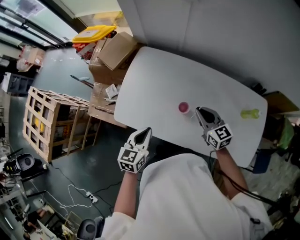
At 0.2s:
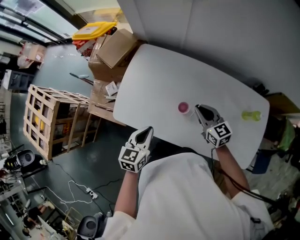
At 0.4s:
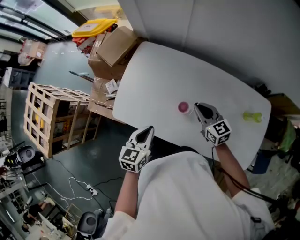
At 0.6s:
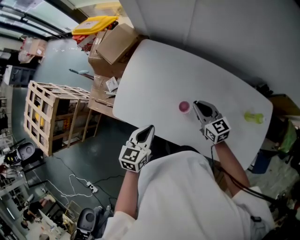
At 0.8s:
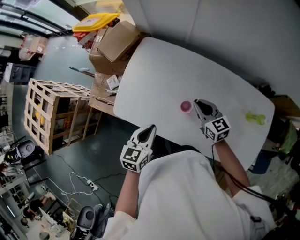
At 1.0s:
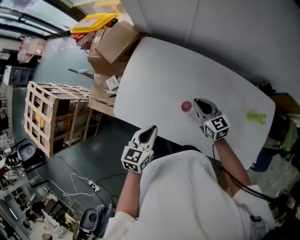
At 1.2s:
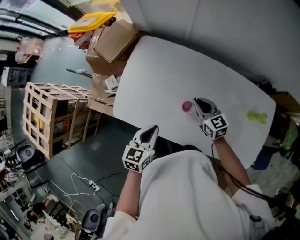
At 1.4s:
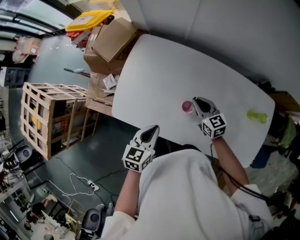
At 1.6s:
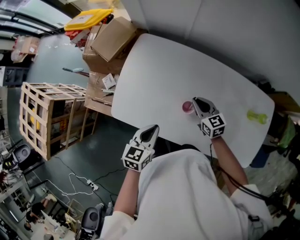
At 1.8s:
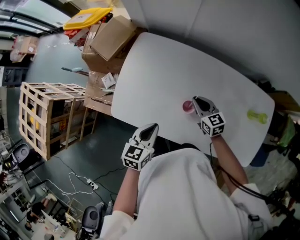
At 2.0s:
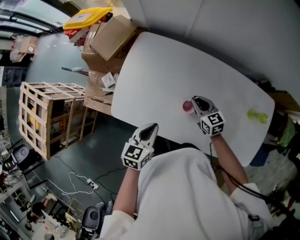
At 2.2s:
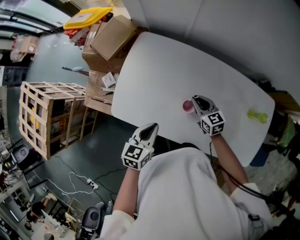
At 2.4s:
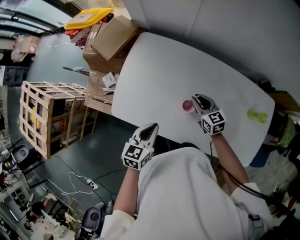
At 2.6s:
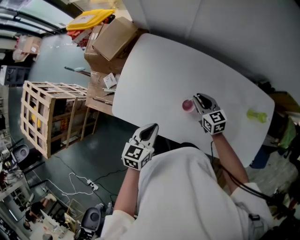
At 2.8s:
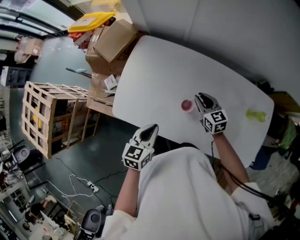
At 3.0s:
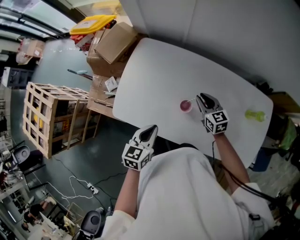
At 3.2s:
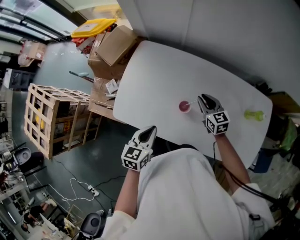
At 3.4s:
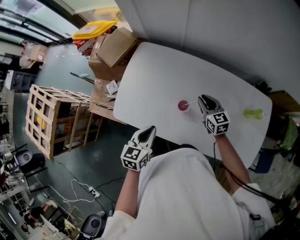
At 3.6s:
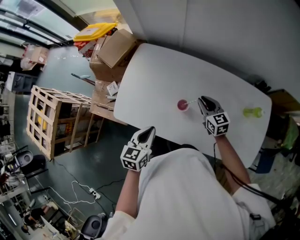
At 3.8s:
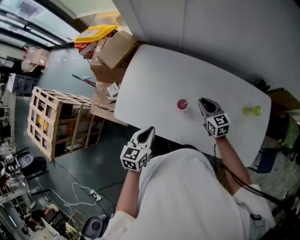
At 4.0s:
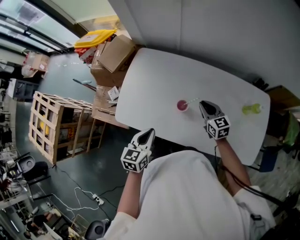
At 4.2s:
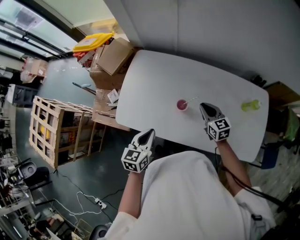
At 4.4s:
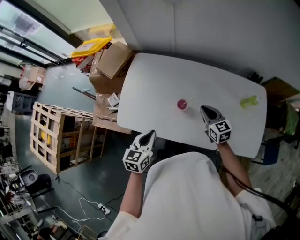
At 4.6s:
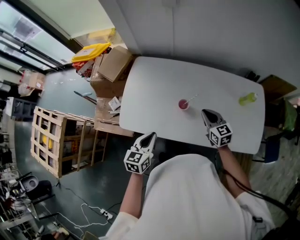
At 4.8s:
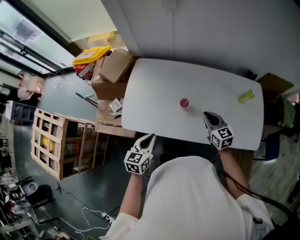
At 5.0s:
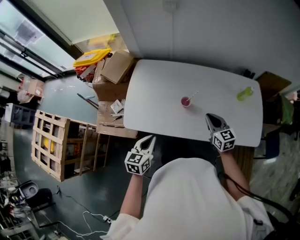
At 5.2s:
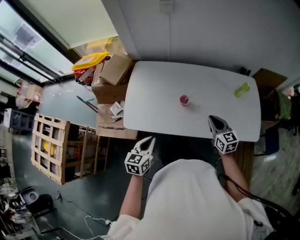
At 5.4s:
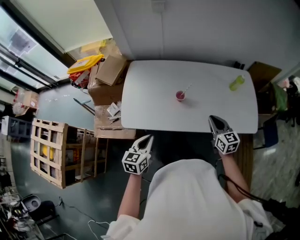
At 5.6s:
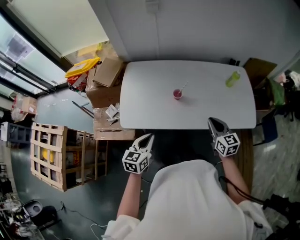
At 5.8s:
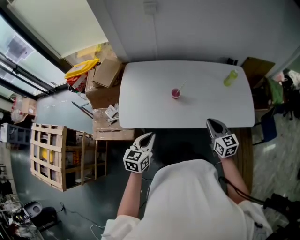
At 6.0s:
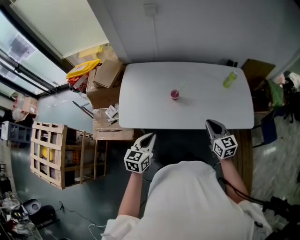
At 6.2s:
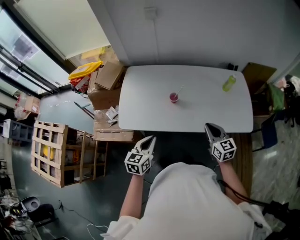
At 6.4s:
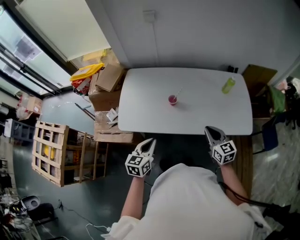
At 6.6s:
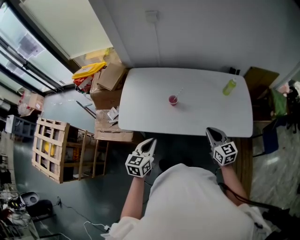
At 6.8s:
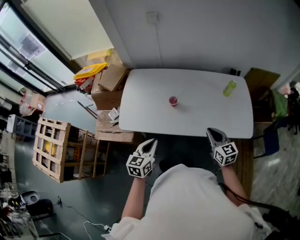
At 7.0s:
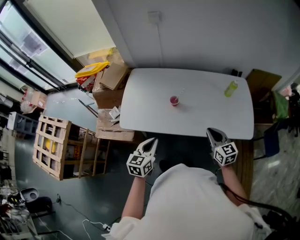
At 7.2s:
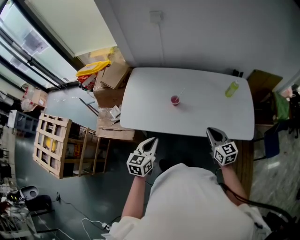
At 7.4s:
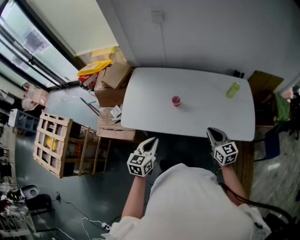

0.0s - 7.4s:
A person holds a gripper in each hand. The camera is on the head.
0.0s - 1.4s: The right gripper goes about 10 cm downward and forward; the left gripper shifts by roughly 5 cm.
1.4s - 3.0s: The grippers make only small movements.
3.0s - 4.4s: The left gripper moves about 5 cm, while the right gripper moves backward, some 10 cm.
4.4s - 6.0s: The left gripper moves backward, roughly 10 cm. The right gripper heads backward, covering some 25 cm.
6.0s - 7.4s: There are only small adjustments of the grippers.

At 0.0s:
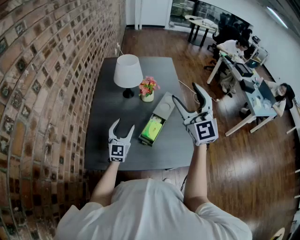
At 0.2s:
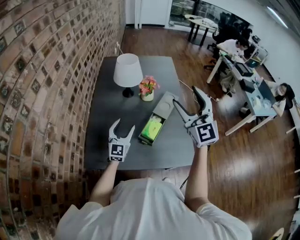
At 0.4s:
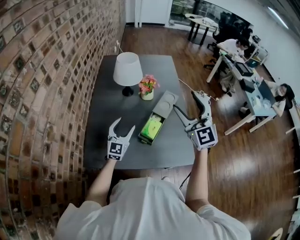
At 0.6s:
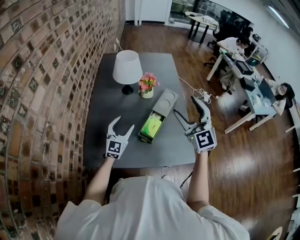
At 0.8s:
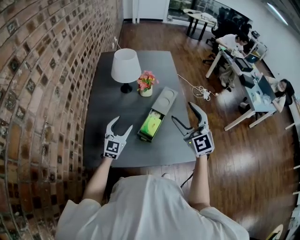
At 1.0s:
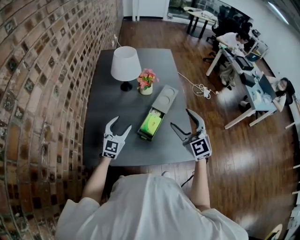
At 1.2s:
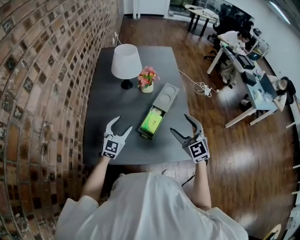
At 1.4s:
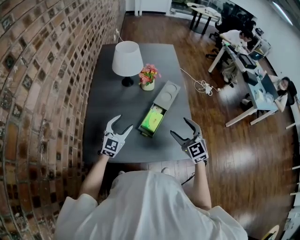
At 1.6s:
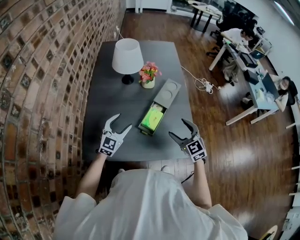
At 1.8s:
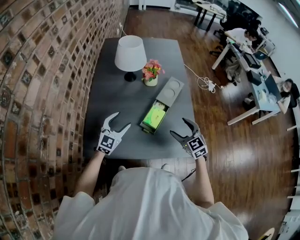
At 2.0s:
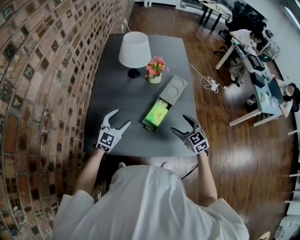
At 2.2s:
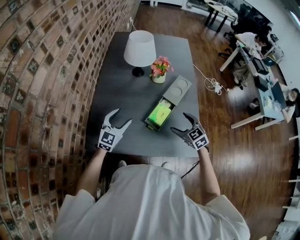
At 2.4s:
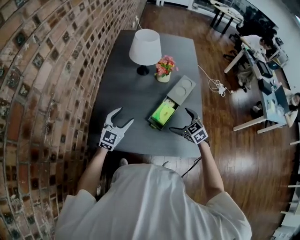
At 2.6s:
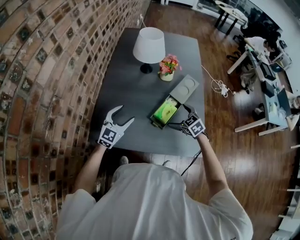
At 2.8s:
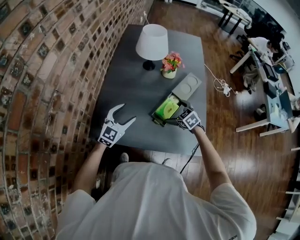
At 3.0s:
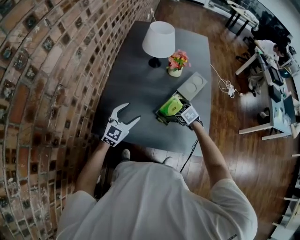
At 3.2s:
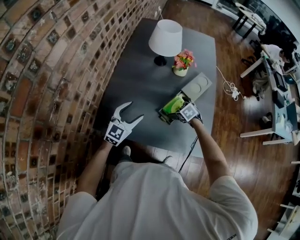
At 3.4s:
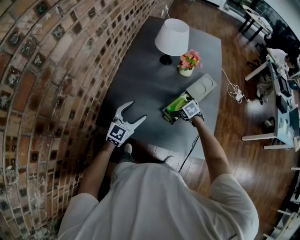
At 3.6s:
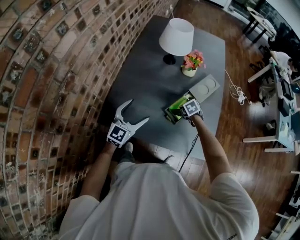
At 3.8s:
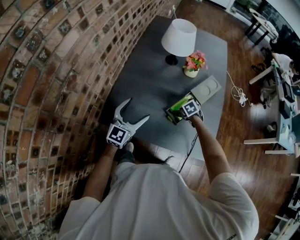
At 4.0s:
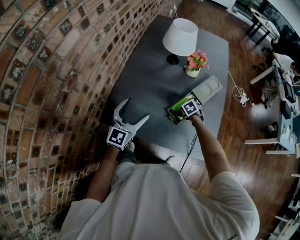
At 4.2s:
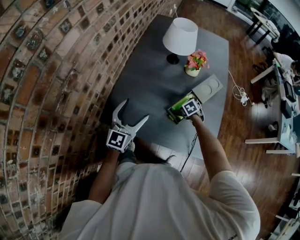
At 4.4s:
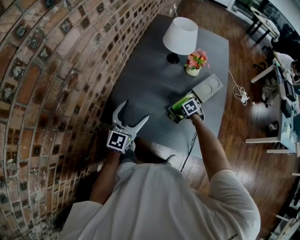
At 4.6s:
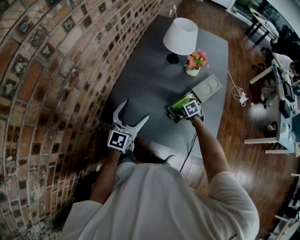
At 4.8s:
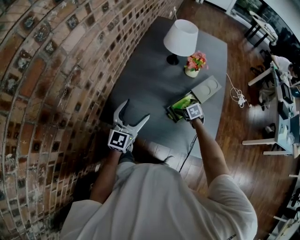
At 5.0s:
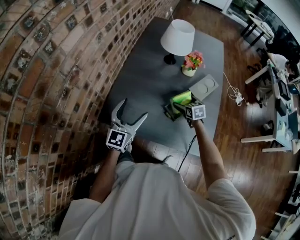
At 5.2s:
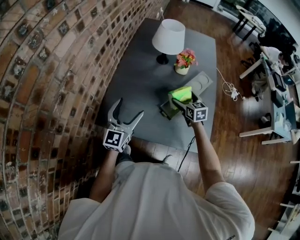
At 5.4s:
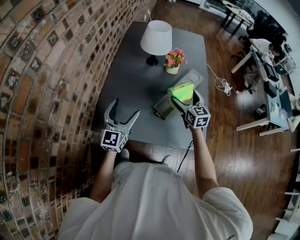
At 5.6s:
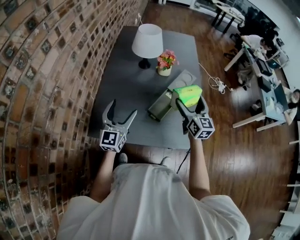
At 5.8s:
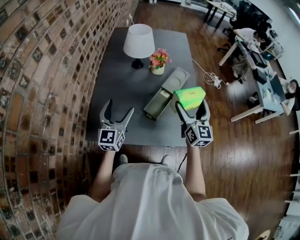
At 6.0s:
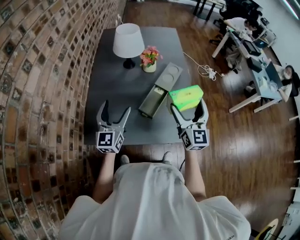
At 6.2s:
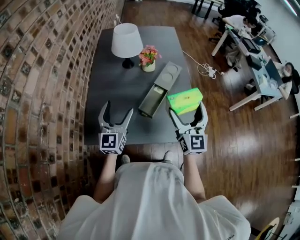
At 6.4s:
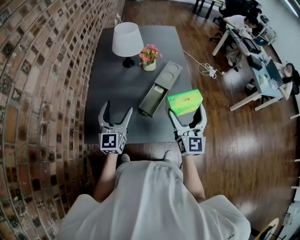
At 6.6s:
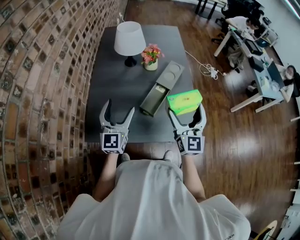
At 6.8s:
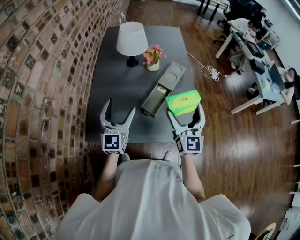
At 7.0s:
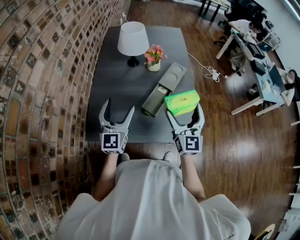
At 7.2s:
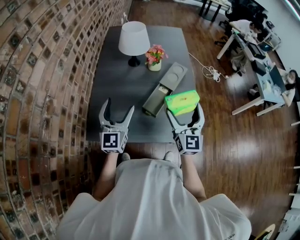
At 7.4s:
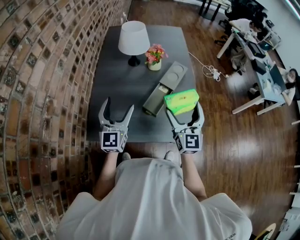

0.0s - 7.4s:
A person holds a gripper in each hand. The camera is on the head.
0.0s - 1.4s: The right gripper travels downward by roughly 25 cm, and turns by approximately 30 degrees. The left gripper moves downward, approximately 5 cm.
1.4s - 3.0s: The left gripper goes approximately 5 cm to the left. Meanwhile the right gripper shifts approximately 25 cm downward and forward, tilts its fingers some 40 degrees downward, and opens its fingers.
3.0s - 4.4s: The right gripper goes approximately 10 cm downward, while the left gripper travels upward by approximately 5 cm, and rotates about 20 degrees.
4.4s - 6.0s: The right gripper goes approximately 40 cm upward and backward, and angles its fingers upward, by about 70 degrees. Meanwhile the left gripper ends up some 5 cm from where it was.
6.0s - 7.4s: There are only small adjustments of the grippers.

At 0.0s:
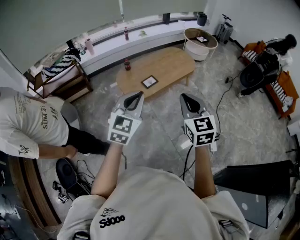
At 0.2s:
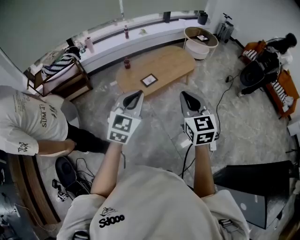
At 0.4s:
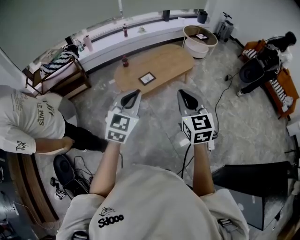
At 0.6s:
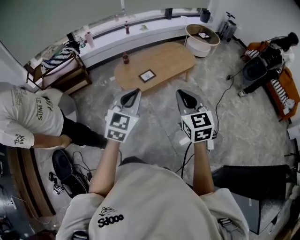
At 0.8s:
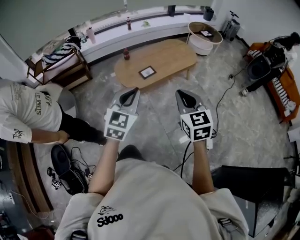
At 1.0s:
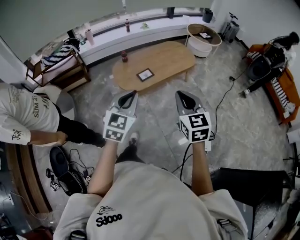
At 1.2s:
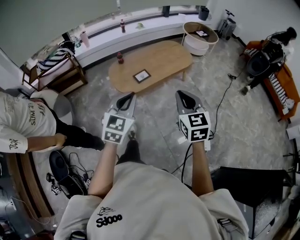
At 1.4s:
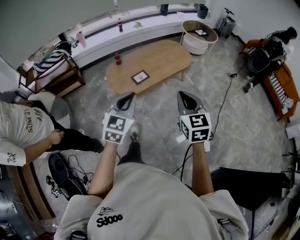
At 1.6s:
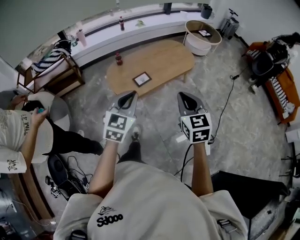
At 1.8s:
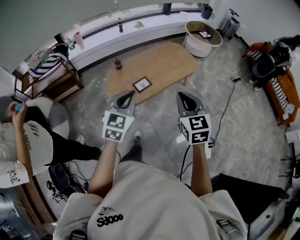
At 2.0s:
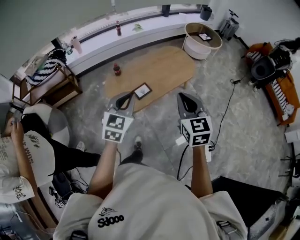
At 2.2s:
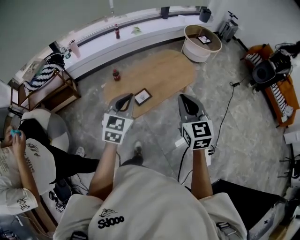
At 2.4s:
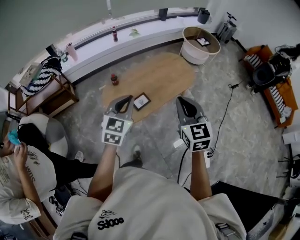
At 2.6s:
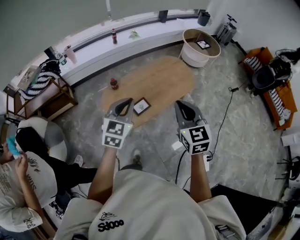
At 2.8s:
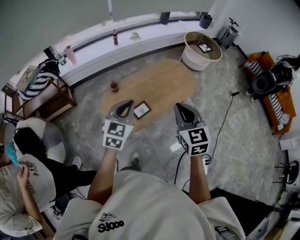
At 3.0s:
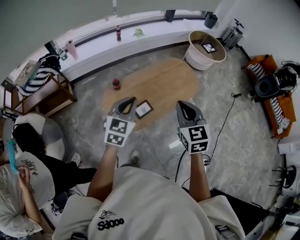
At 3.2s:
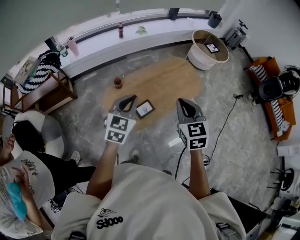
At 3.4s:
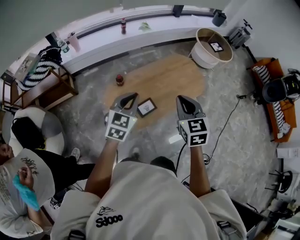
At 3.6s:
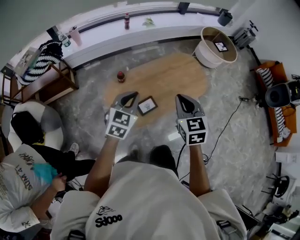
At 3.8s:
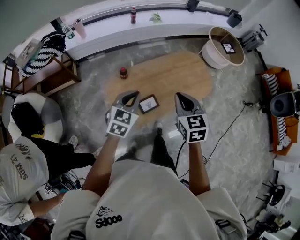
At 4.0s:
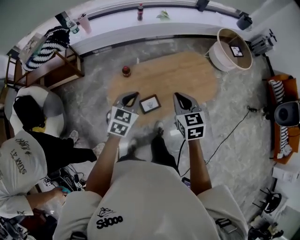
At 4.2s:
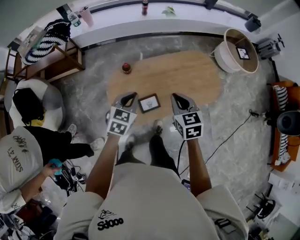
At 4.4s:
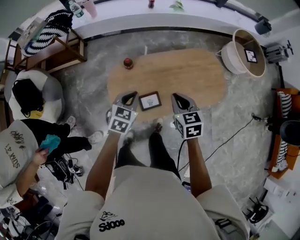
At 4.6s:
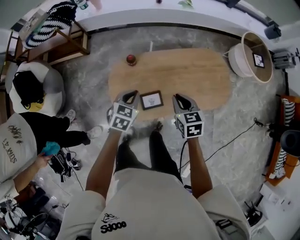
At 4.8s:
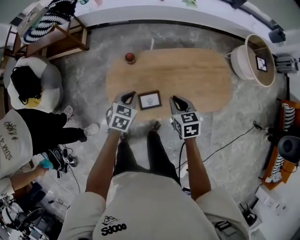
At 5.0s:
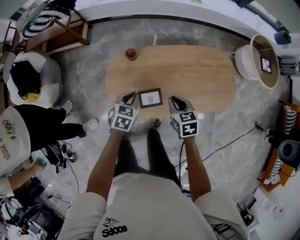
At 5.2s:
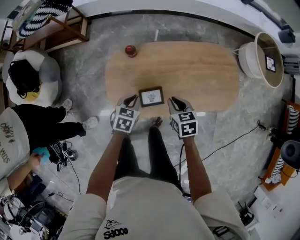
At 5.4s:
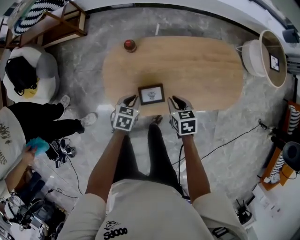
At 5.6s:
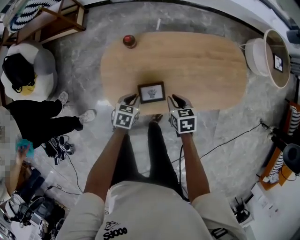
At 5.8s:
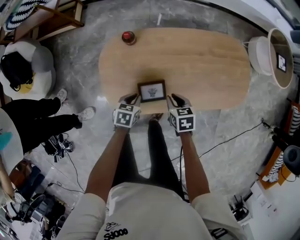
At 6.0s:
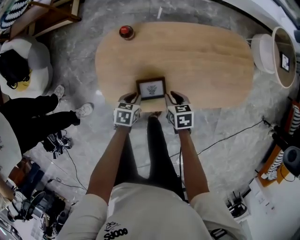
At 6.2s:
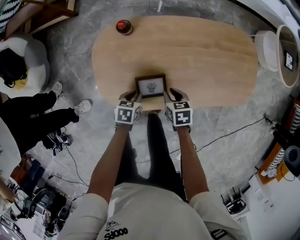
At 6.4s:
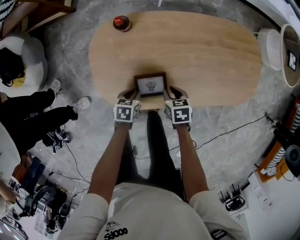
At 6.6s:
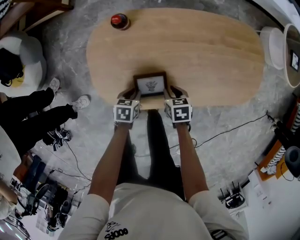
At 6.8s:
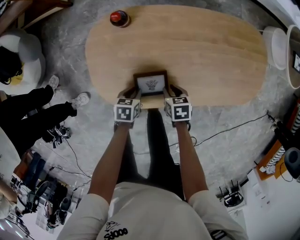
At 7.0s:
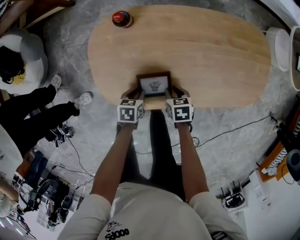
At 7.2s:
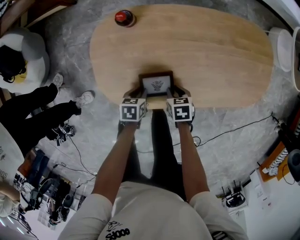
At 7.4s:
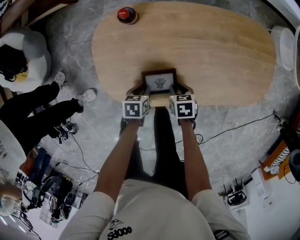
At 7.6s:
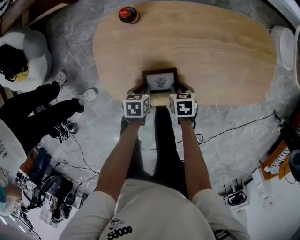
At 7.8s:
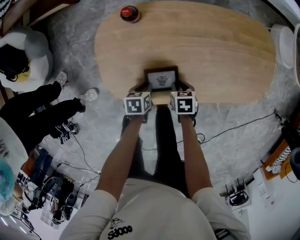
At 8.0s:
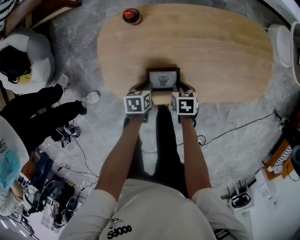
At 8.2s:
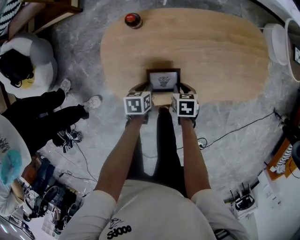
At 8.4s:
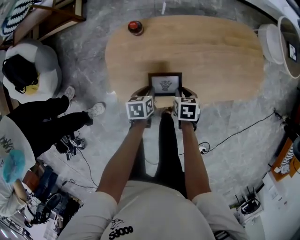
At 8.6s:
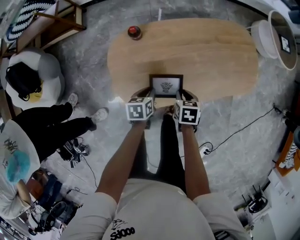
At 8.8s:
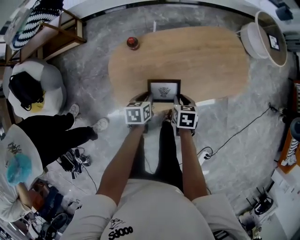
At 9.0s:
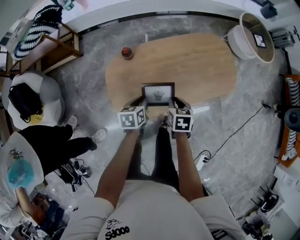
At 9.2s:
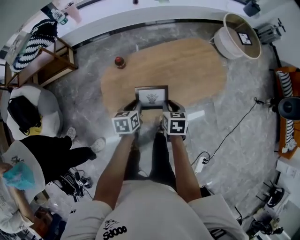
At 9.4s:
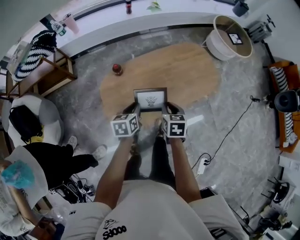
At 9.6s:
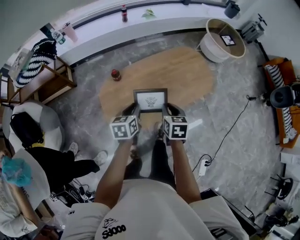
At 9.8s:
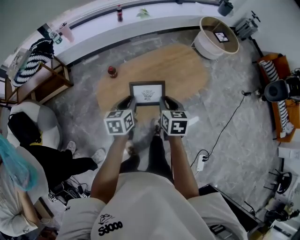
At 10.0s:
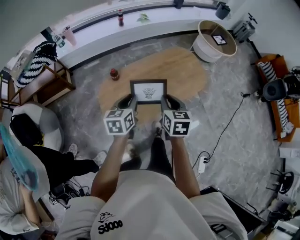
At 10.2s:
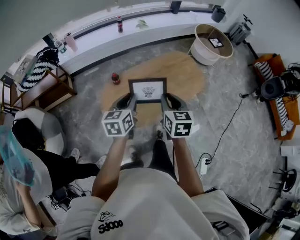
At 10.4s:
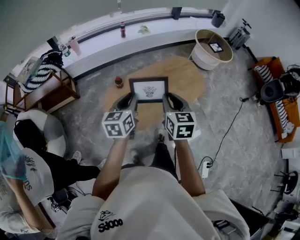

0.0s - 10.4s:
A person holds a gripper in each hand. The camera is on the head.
0.0s - 1.4s: The left gripper heads forward, downward and to the right, covering roughly 10 cm. Meanwhile the right gripper travels forward, to the right and downward by approximately 15 cm.
1.4s - 3.0s: The two grippers go roughly 35 cm forward.
3.0s - 4.4s: The right gripper shifts about 30 cm forward and downward, and changes its angle by roughly 30 degrees, while the left gripper is displaced downward and forward by roughly 25 cm, and turns by roughly 30 degrees.
4.4s - 6.0s: Both grippers travel together downward, approximately 35 cm. The right gripper swivels about 30 degrees. Meanwhile the left gripper swivels roughly 40 degrees.
6.0s - 7.4s: Both grippers travel together downward, some 10 cm.
7.4s - 9.0s: Both grippers travel together upward, about 25 cm. The left gripper changes its angle by approximately 20 degrees. Meanwhile the right gripper swivels some 30 degrees.
9.0s - 10.4s: Both grippers move upward, about 35 cm. The right gripper tilts its fingers some 30 degrees upward; the left gripper rotates some 40 degrees.
